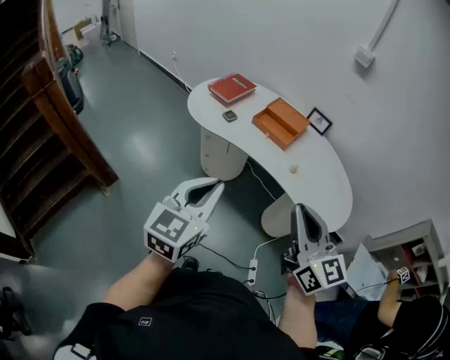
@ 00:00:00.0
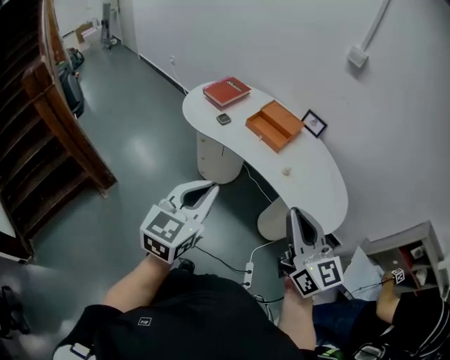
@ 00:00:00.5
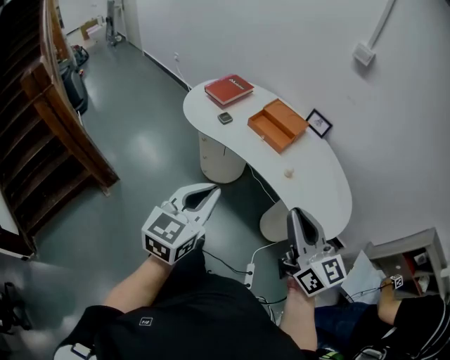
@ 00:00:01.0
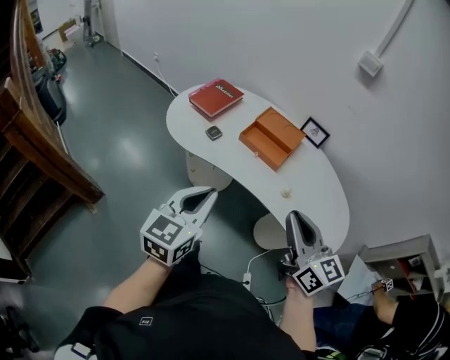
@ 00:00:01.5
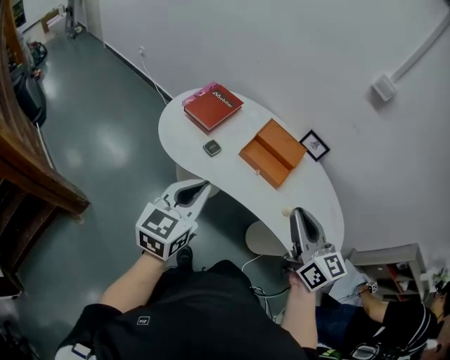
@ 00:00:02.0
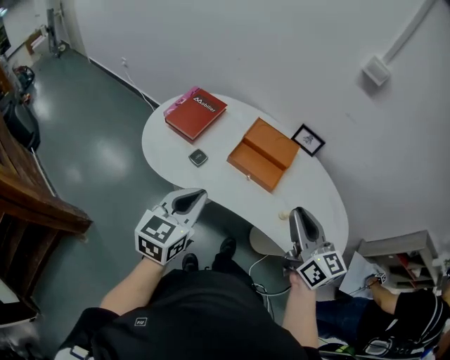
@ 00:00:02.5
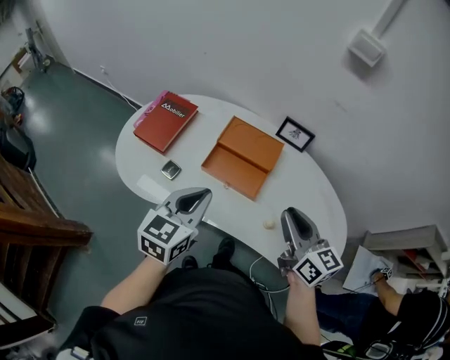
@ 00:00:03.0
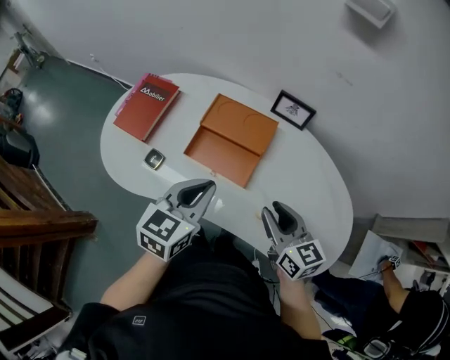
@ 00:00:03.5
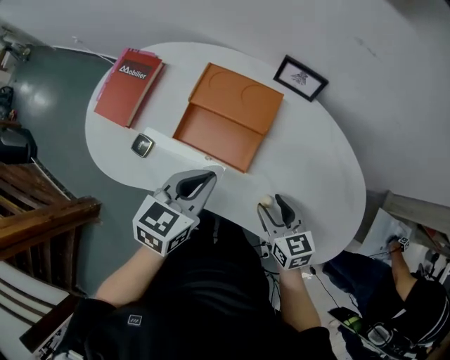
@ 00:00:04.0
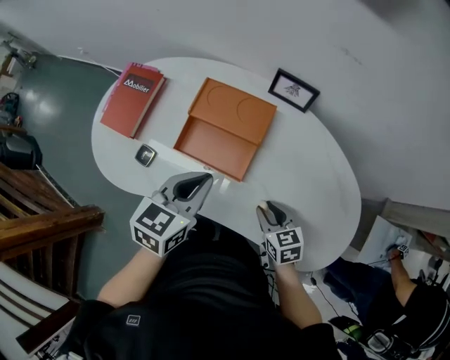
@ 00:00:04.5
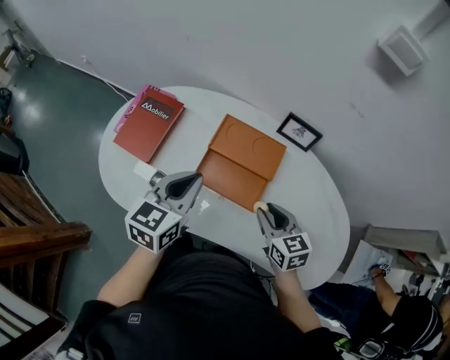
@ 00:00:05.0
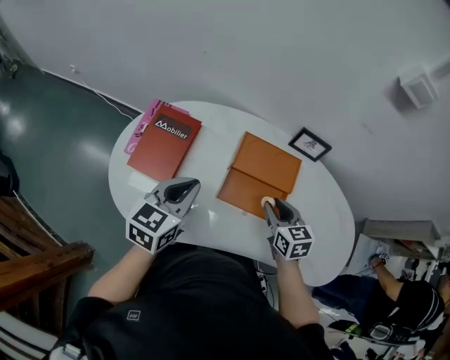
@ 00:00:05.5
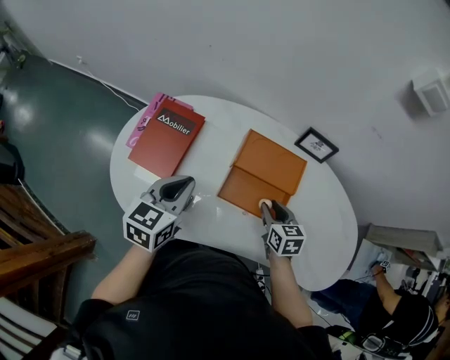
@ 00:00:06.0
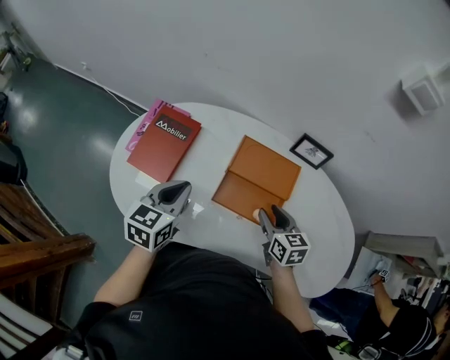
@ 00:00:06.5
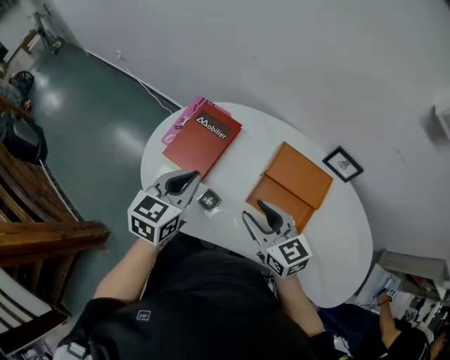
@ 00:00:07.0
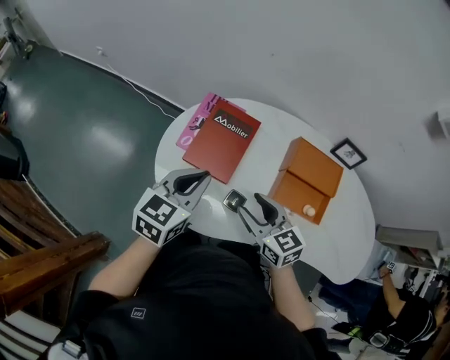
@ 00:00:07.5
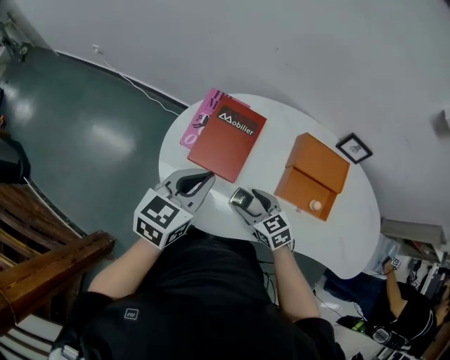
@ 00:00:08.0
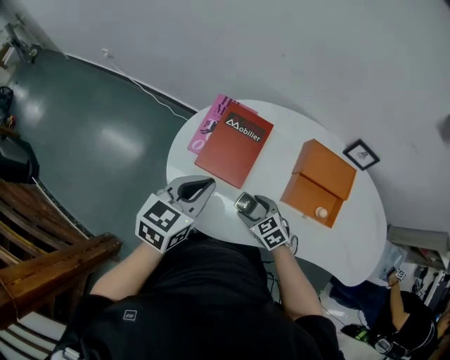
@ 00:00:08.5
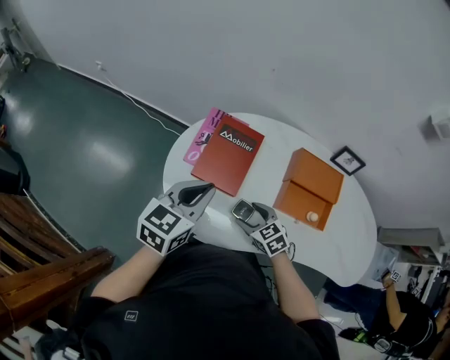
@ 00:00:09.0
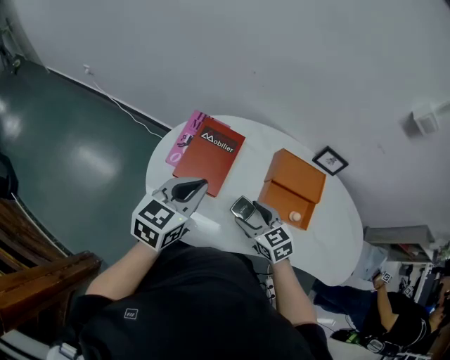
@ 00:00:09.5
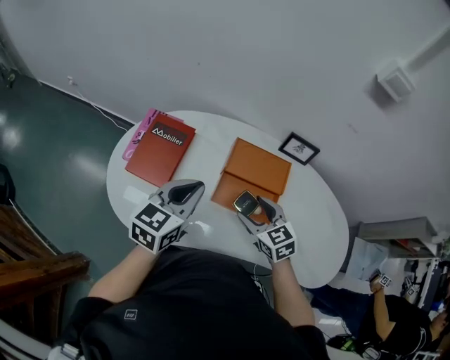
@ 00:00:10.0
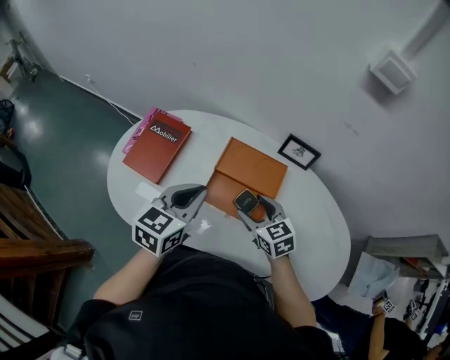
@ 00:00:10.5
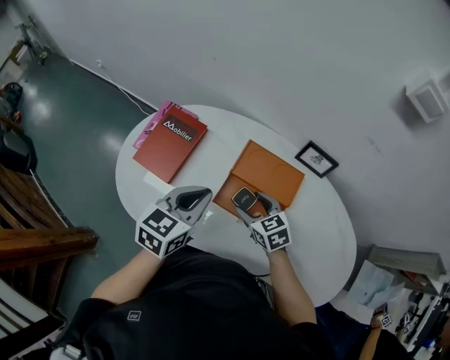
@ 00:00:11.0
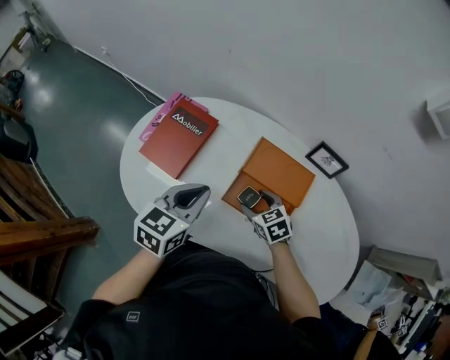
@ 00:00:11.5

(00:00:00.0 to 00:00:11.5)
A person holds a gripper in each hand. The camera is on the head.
00:00:00.0 - 00:00:02.0: Both grippers move forward, roughly 30 cm.
00:00:02.0 - 00:00:04.0: The right gripper shifts approximately 35 cm downward, to the right and forward, swivels approximately 30 degrees, and opens up. The left gripper heads to the right, forward and downward, covering some 35 cm, and turns by roughly 30 degrees.
00:00:04.0 - 00:00:06.0: The left gripper goes some 25 cm to the left and forward; the right gripper travels forward and to the left by about 20 cm.
00:00:06.0 - 00:00:07.5: The left gripper travels to the left by about 15 cm. Meanwhile the right gripper shifts roughly 30 cm to the left, and swivels about 30 degrees.
00:00:07.5 - 00:00:09.5: The right gripper goes downward and returns, approximately 15 cm each way.
00:00:09.5 - 00:00:11.5: The right gripper moves to the right and downward, about 20 cm. The left gripper heads to the right, covering approximately 20 cm.

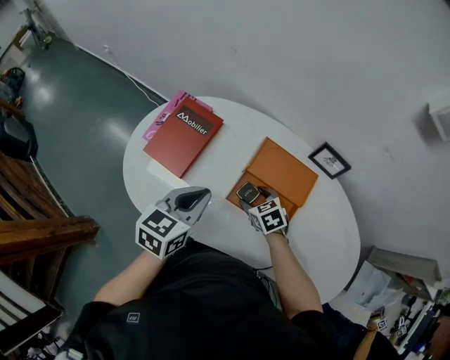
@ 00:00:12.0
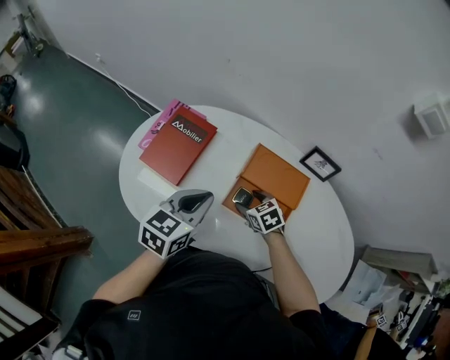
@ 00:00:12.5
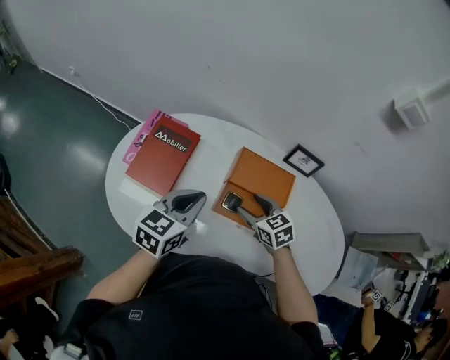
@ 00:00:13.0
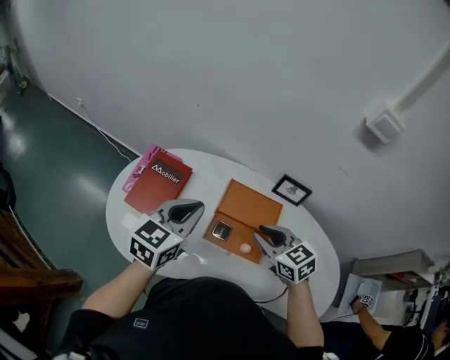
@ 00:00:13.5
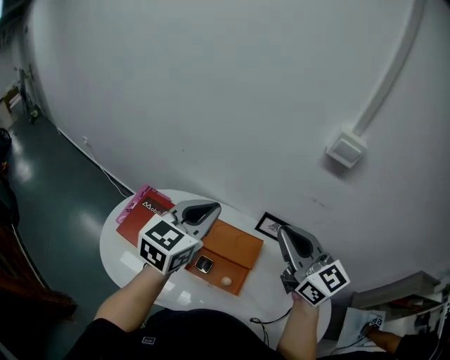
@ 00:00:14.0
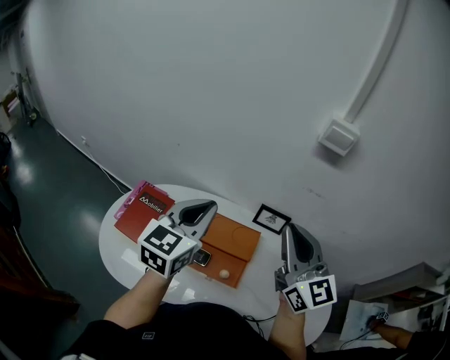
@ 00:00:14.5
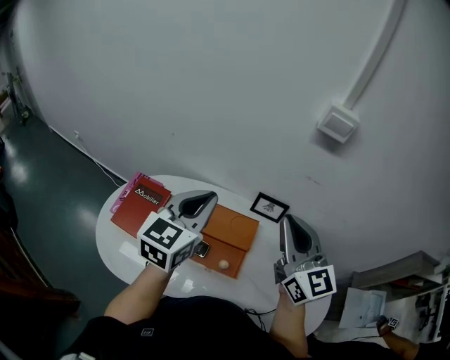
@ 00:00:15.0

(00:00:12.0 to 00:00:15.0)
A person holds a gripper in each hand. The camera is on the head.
00:00:12.0 - 00:00:13.5: The left gripper shifts approximately 10 cm upward and forward. The right gripper heads upward, covering about 20 cm, changes its angle by about 20 degrees, and closes.
00:00:13.5 - 00:00:15.0: The two grippers go some 20 cm upward and to the right. The right gripper points its fingers approximately 40 degrees further upward.

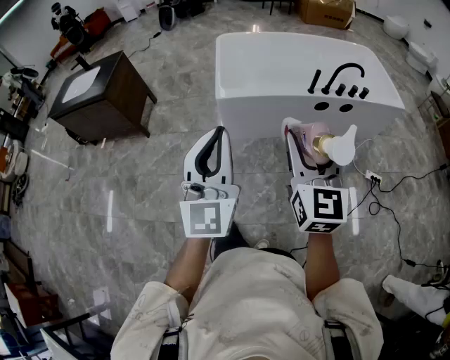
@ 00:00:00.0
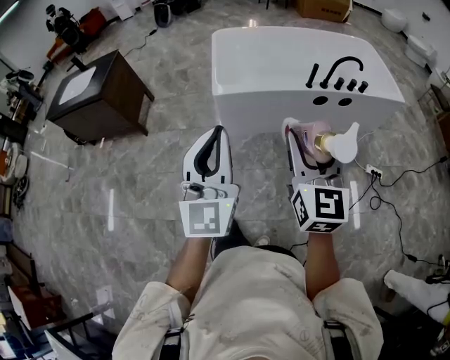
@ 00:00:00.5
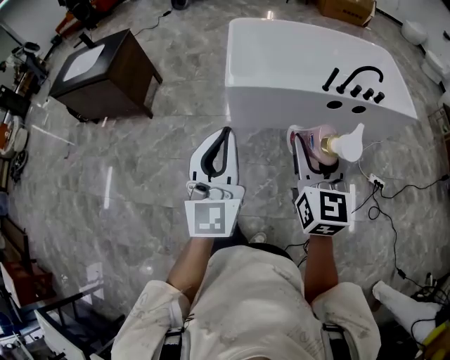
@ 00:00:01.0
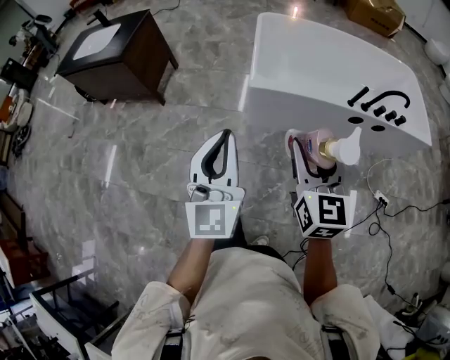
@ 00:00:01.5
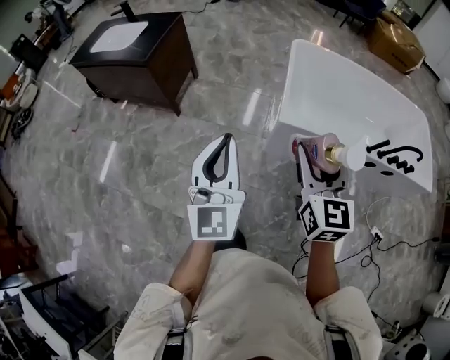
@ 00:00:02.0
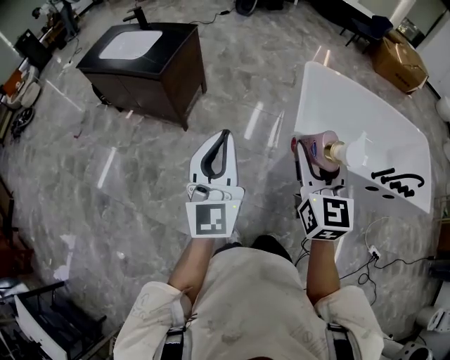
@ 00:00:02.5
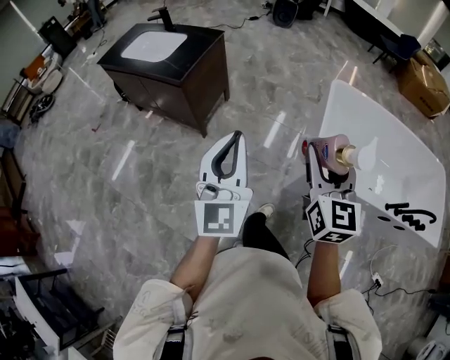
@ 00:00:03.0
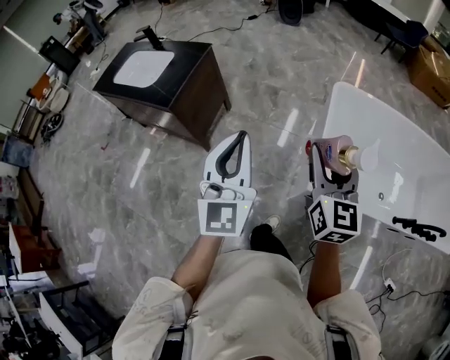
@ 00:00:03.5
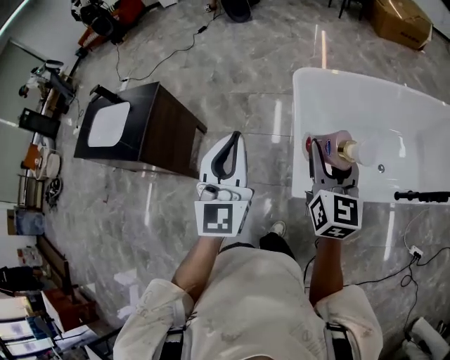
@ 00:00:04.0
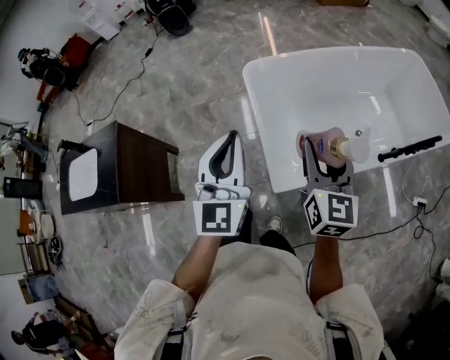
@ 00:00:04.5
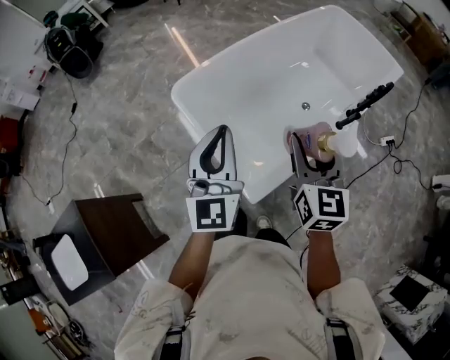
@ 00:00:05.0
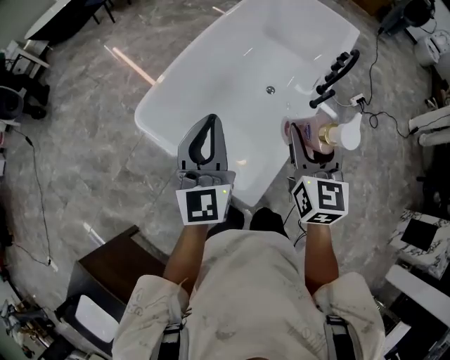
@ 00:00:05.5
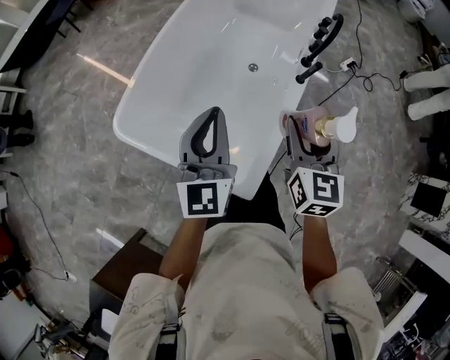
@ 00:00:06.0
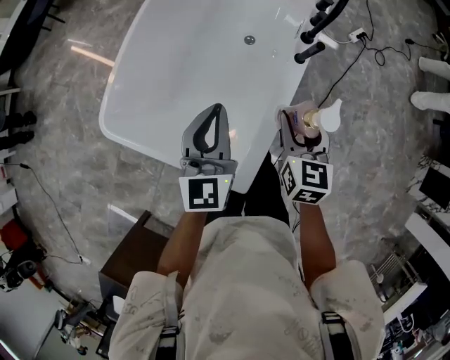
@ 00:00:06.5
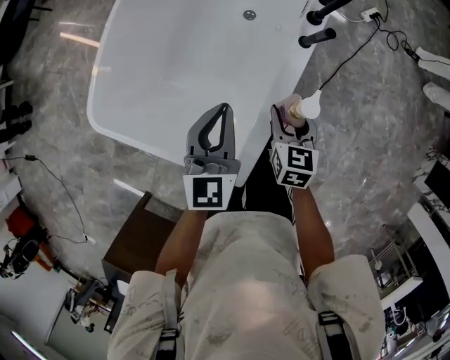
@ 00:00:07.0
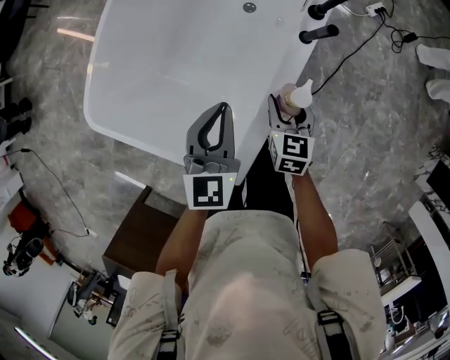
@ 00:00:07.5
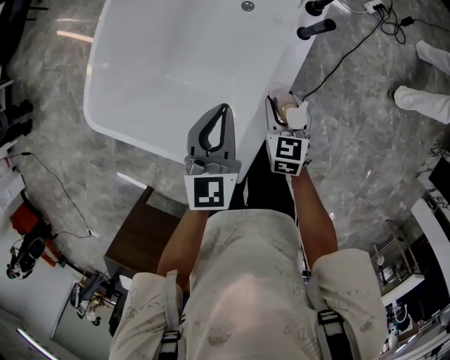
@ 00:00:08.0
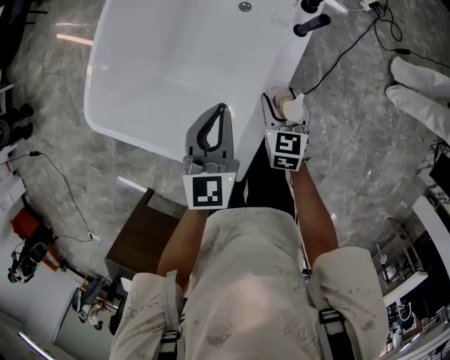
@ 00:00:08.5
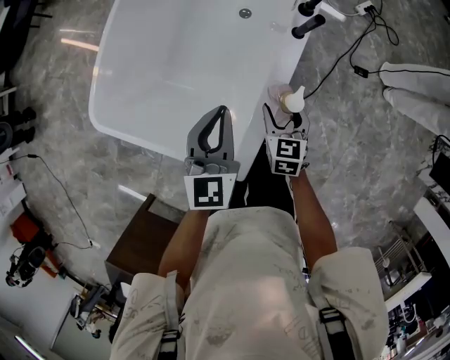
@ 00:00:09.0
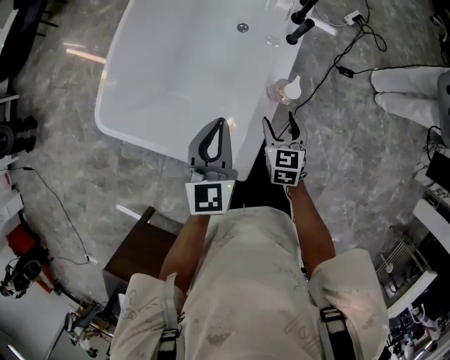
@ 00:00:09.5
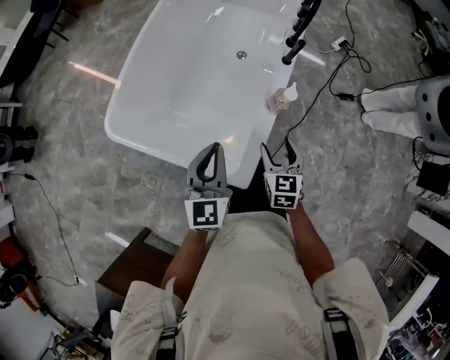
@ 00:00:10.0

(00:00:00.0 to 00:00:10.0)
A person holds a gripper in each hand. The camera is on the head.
00:00:00.0 - 00:00:02.0: The left gripper is displaced to the left and forward by about 35 cm, and rotates about 20 degrees; the right gripper shifts some 35 cm forward and to the left.
00:00:02.0 - 00:00:04.0: Both grippers are carried forward, some 40 cm.
00:00:04.0 - 00:00:06.0: The left gripper moves roughly 40 cm, and swivels roughly 70 degrees; the right gripper shifts by roughly 30 cm, and changes its angle by approximately 70 degrees.
00:00:06.0 - 00:00:08.0: The right gripper heads downward, covering some 30 cm, and changes its angle by about 20 degrees; the left gripper moves downward and to the right, roughly 25 cm, and rotates approximately 20 degrees.
00:00:08.0 - 00:00:10.0: Both grippers move backward and upward, approximately 20 cm.

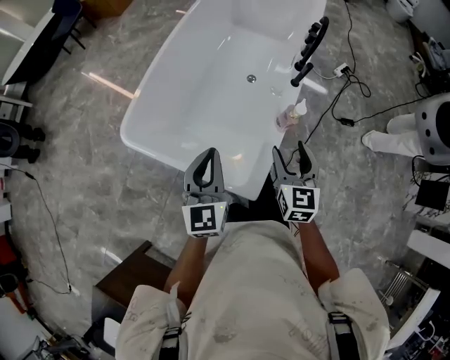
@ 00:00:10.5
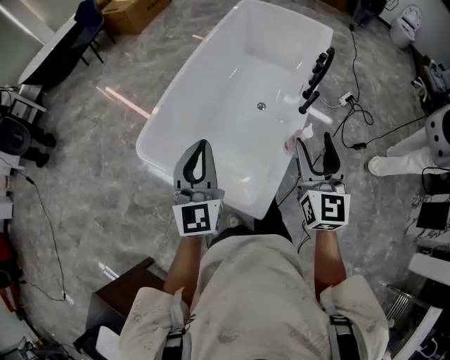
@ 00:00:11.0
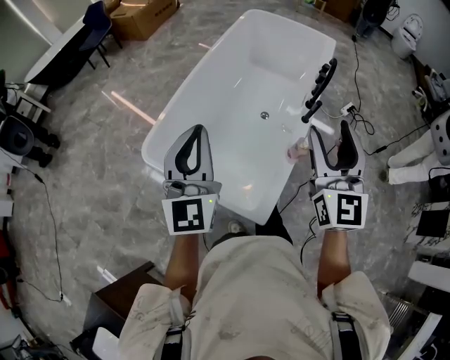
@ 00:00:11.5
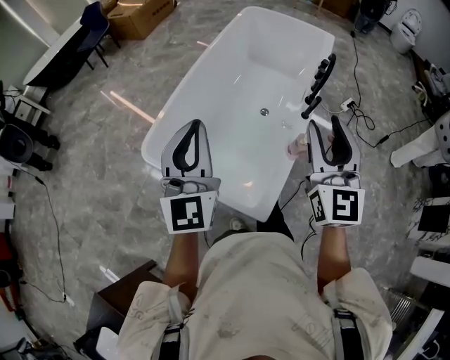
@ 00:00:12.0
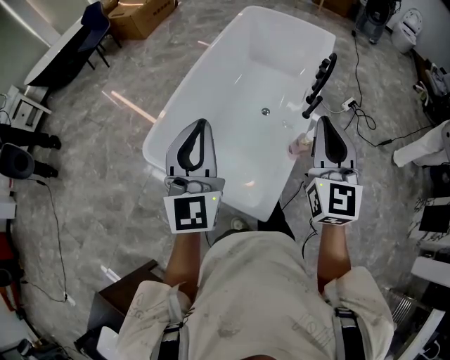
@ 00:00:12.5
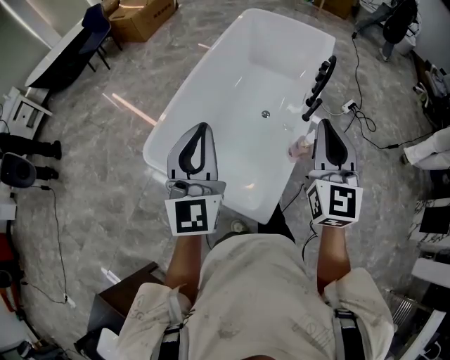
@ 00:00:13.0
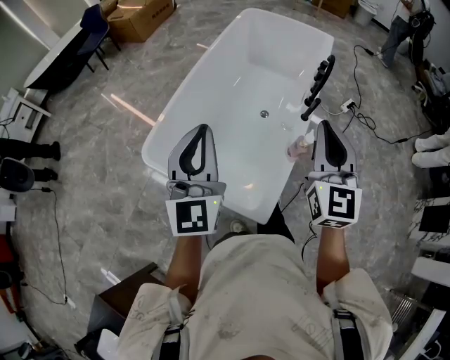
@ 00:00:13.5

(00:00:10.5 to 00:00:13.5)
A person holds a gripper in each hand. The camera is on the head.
00:00:10.5 - 00:00:12.0: Both grippers travel together upward, approximately 25 cm. The right gripper rotates roughly 30 degrees, while the left gripper changes its angle by approximately 20 degrees.
00:00:12.0 - 00:00:13.5: The right gripper closes up.
